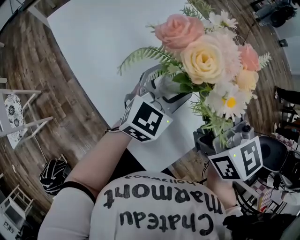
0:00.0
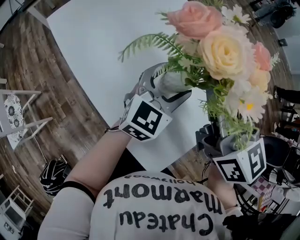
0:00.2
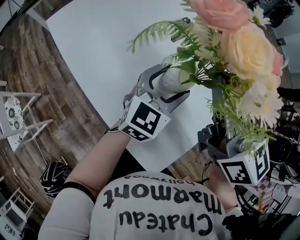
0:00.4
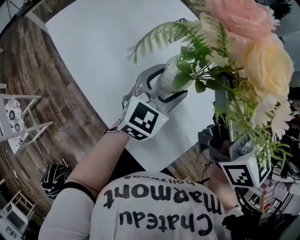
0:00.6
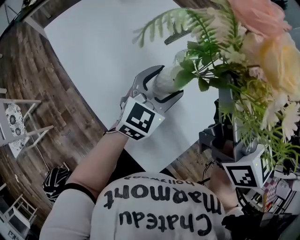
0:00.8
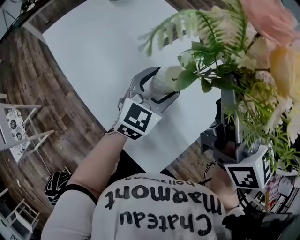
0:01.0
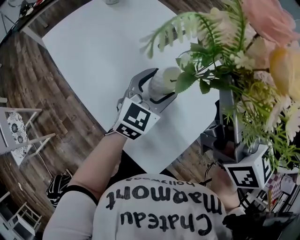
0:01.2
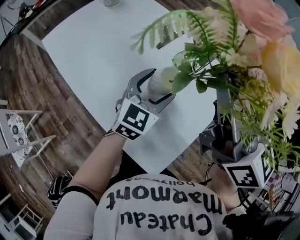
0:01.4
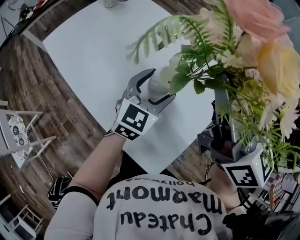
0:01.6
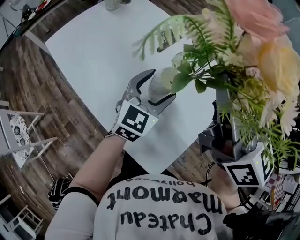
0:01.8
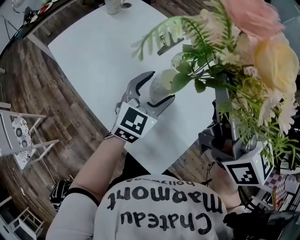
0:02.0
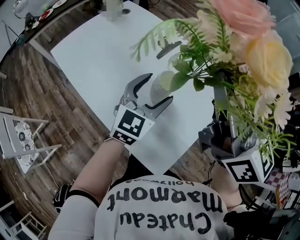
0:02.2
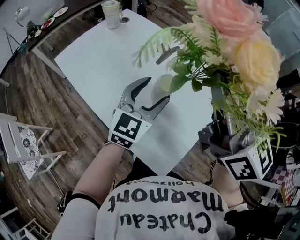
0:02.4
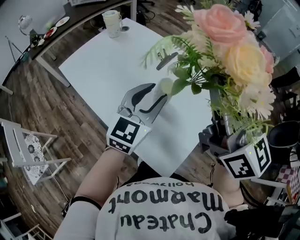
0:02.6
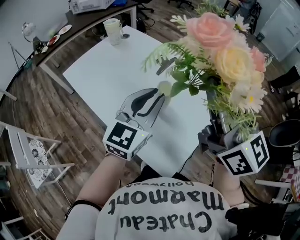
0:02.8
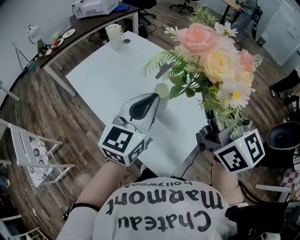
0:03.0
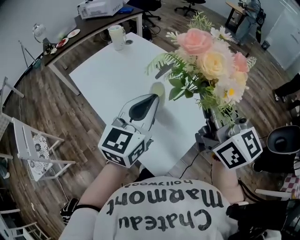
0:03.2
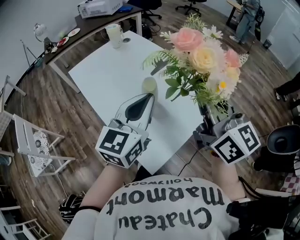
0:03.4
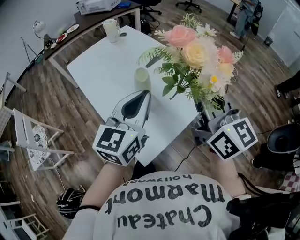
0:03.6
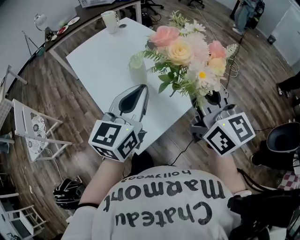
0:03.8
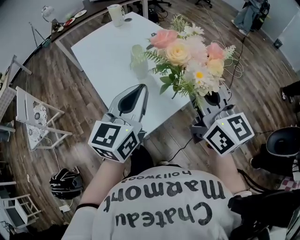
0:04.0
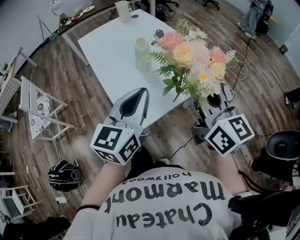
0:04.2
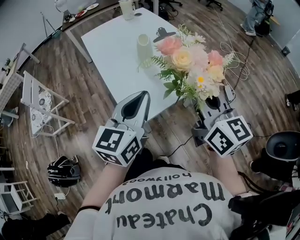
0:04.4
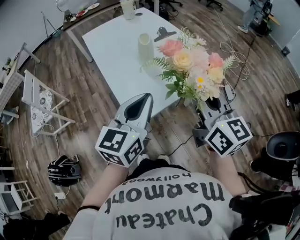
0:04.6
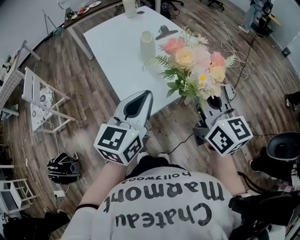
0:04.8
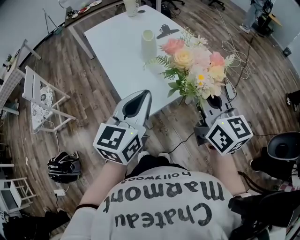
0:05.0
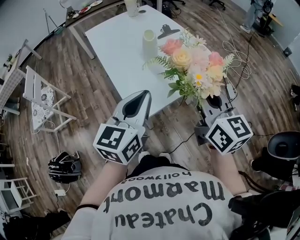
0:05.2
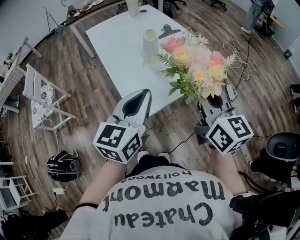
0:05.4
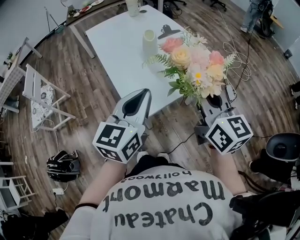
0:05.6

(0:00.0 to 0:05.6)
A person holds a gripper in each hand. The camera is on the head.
0:00.0 - 0:01.4: The right gripper moves upward, approximately 10 cm.
0:01.4 - 0:02.8: The left gripper is displaced upward and backward by some 15 cm, and closes; the right gripper heads backward and upward, covering approximately 10 cm.
0:02.8 - 0:04.2: The left gripper shifts approximately 20 cm backward and to the right, and turns by about 30 degrees. Meanwhile the right gripper moves to the right, backward and downward, some 20 cm.
0:04.2 - 0:05.6: The grippers stay close to where they were, moving slightly.

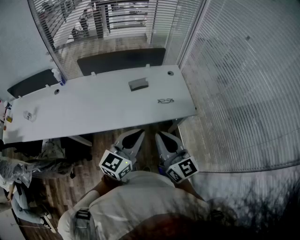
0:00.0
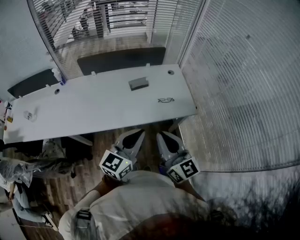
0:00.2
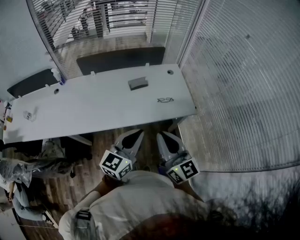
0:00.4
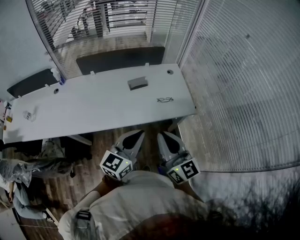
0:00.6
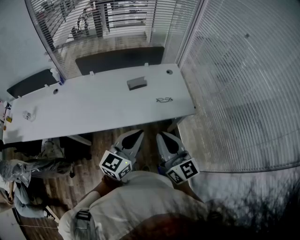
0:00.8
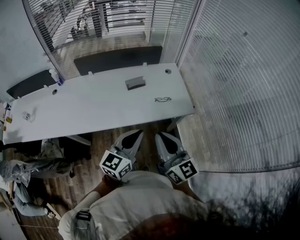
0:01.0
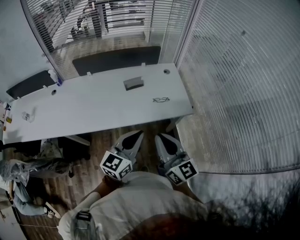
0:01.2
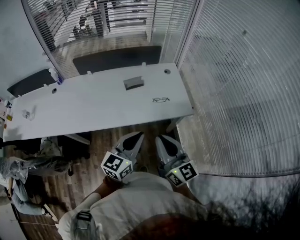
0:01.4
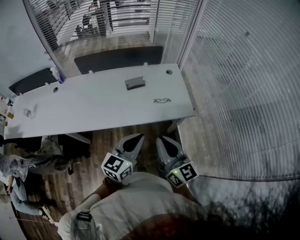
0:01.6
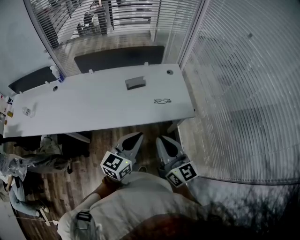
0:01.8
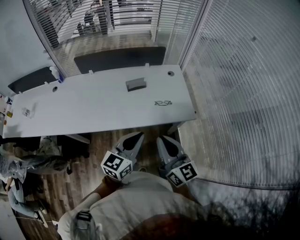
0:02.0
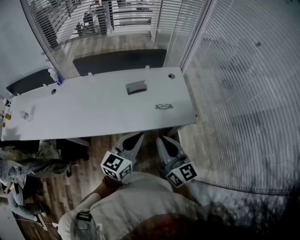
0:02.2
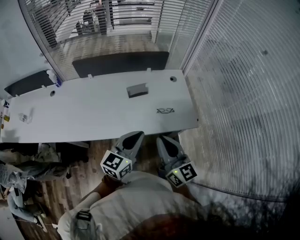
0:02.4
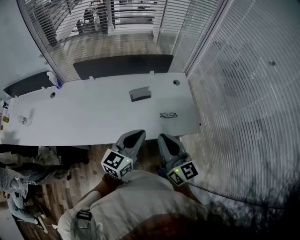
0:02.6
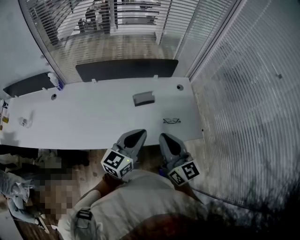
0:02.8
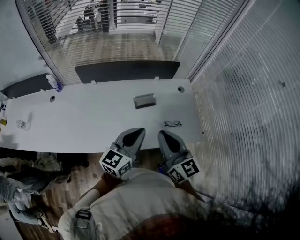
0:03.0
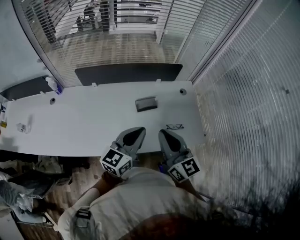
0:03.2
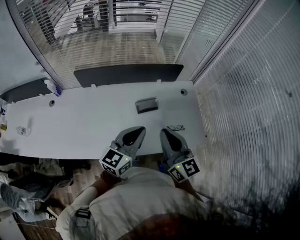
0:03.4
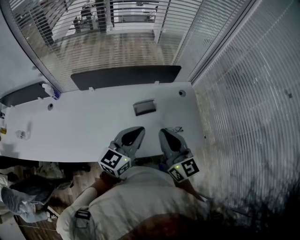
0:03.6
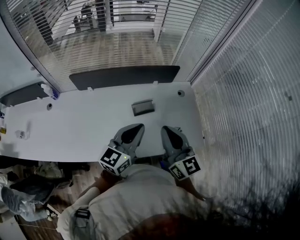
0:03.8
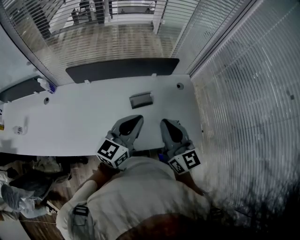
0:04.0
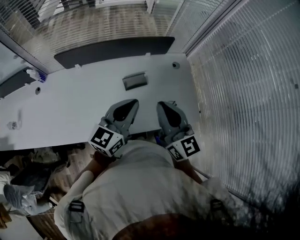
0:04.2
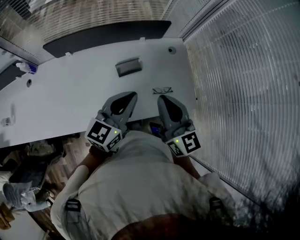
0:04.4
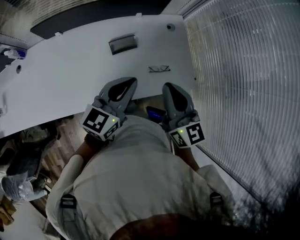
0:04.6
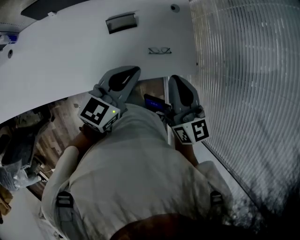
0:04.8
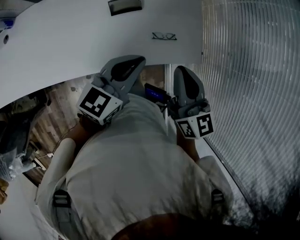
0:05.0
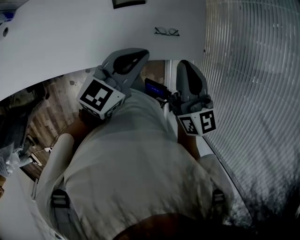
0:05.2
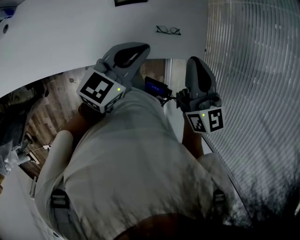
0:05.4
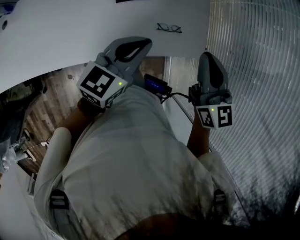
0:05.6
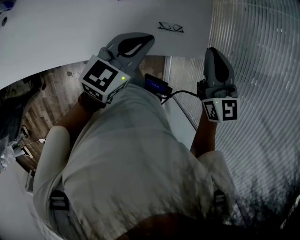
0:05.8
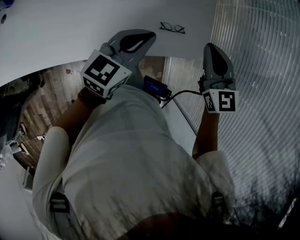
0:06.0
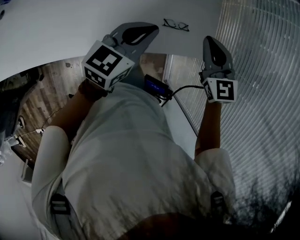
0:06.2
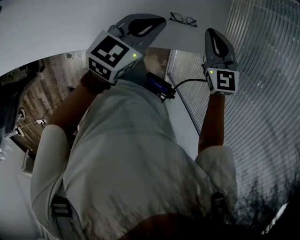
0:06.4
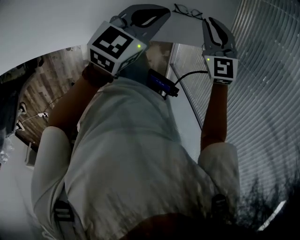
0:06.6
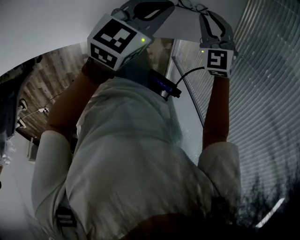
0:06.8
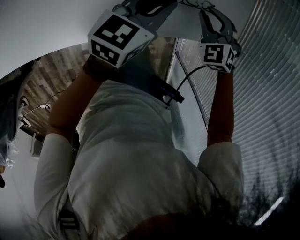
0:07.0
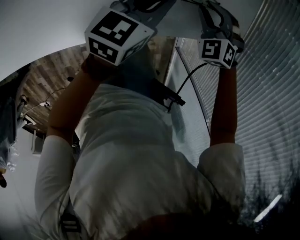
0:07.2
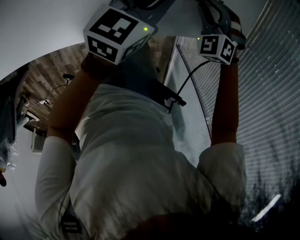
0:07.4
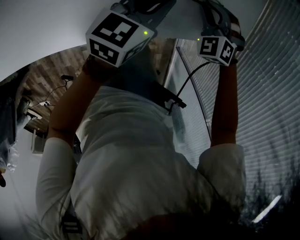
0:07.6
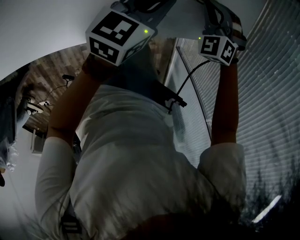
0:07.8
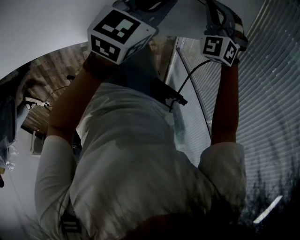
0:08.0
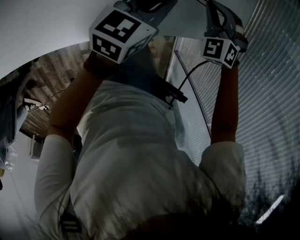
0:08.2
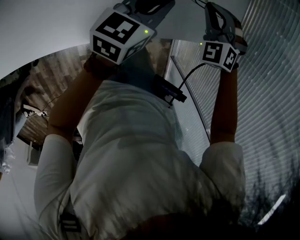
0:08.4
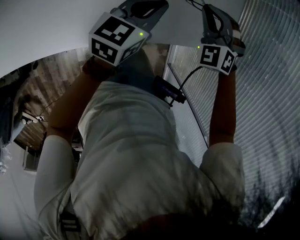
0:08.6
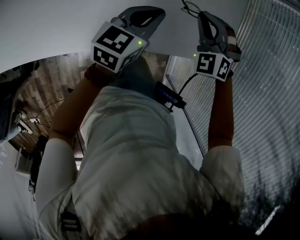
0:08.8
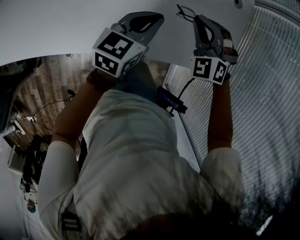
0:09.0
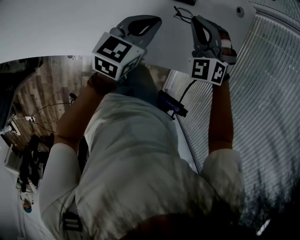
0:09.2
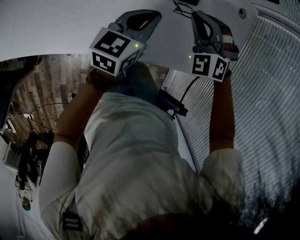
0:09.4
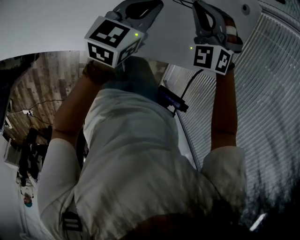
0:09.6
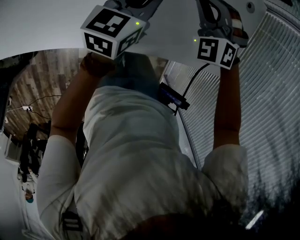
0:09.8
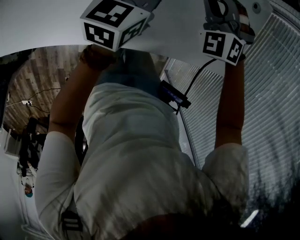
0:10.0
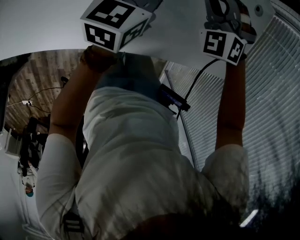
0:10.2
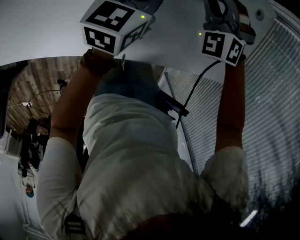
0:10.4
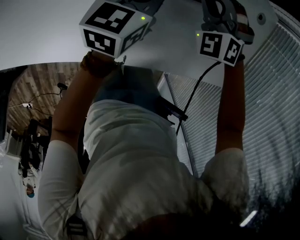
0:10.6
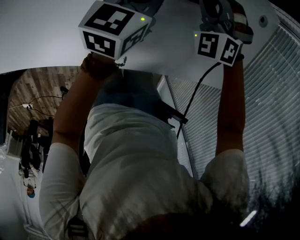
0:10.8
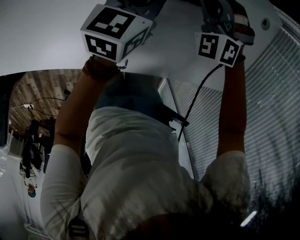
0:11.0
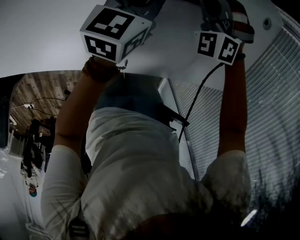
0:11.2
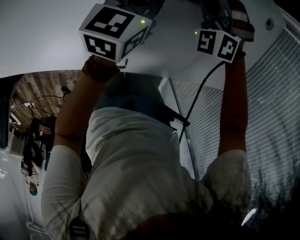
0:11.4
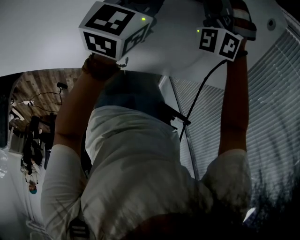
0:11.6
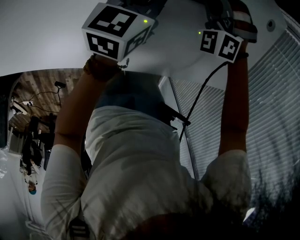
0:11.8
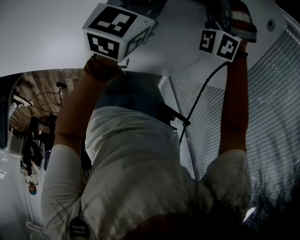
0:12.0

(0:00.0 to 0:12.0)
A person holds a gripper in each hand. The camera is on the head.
0:00.0 - 0:01.6: The grippers both shift to the right by some 5 cm.
0:01.6 - 0:03.0: Both grippers move forward and to the left, roughly 25 cm.
0:03.0 - 0:04.4: The left gripper heads forward, covering about 10 cm, while the right gripper heads forward and to the right, covering roughly 10 cm.
0:04.4 - 0:06.0: The right gripper heads to the right, downward and forward, covering approximately 15 cm, and rotates about 30 degrees. The left gripper travels downward by some 10 cm.
0:06.0 - 0:07.6: The left gripper heads downward, covering roughly 25 cm, while the right gripper moves downward, roughly 35 cm, and tilts its fingers some 30 degrees downward.
0:07.6 - 0:09.0: The left gripper travels backward, to the left and upward by roughly 10 cm, while the right gripper goes roughly 15 cm upward and to the left, and changes its angle by approximately 20 degrees.
0:09.0 - 0:10.4: The grippers both shift forward and to the left by about 10 cm.
0:10.4 - 0:12.0: The right gripper travels downward by roughly 10 cm.

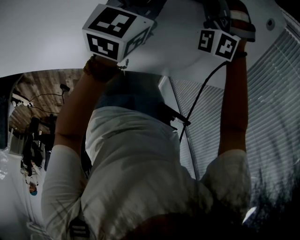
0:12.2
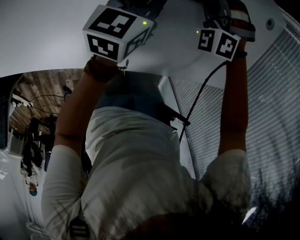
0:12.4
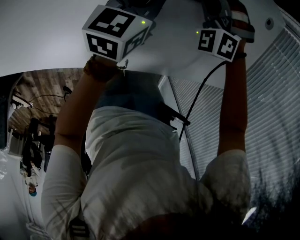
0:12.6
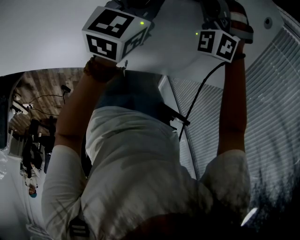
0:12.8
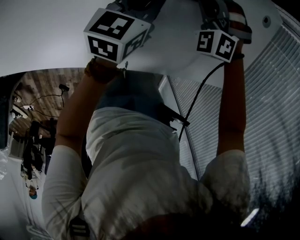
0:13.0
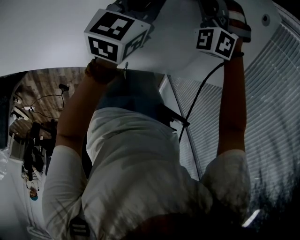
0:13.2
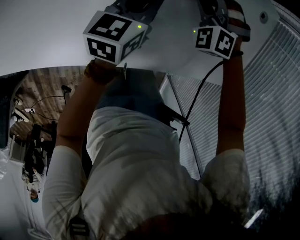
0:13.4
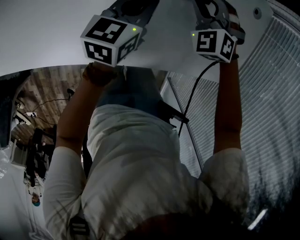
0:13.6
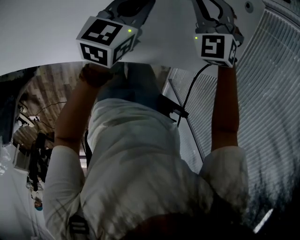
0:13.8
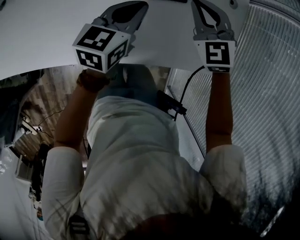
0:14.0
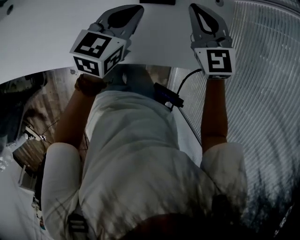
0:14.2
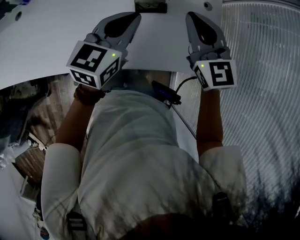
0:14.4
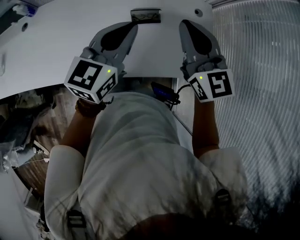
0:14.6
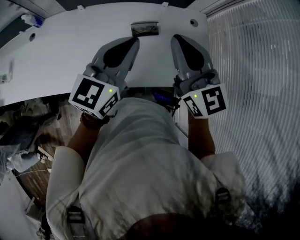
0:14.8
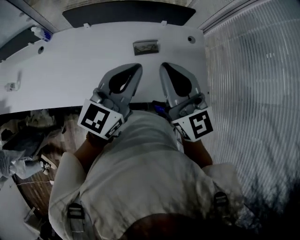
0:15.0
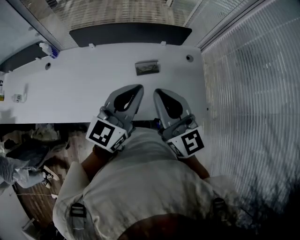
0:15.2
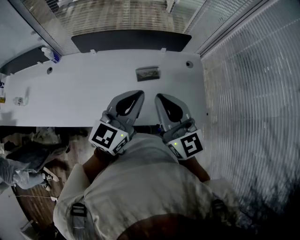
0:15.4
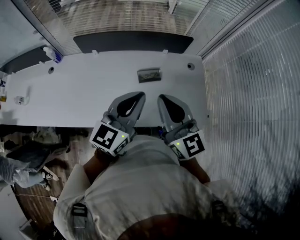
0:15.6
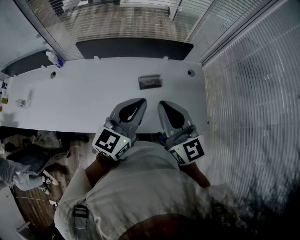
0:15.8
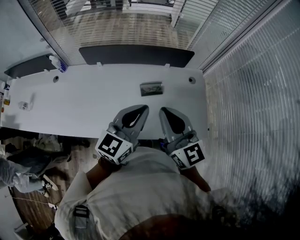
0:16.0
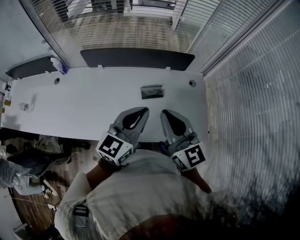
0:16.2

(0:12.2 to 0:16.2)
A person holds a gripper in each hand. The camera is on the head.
0:12.2 - 0:13.6: The right gripper shifts by some 5 cm.
0:13.6 - 0:14.8: Both grippers travel together upward and backward, approximately 40 cm. The left gripper rotates about 30 degrees. The right gripper angles its fingers upward, by some 50 degrees, and closes.

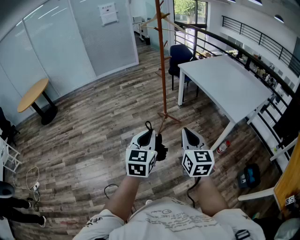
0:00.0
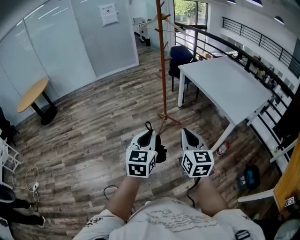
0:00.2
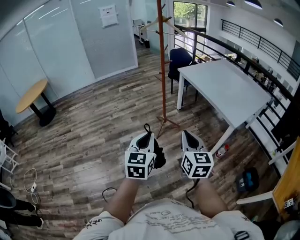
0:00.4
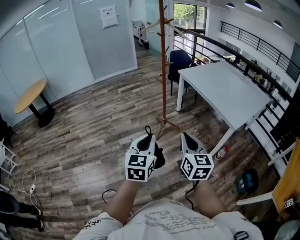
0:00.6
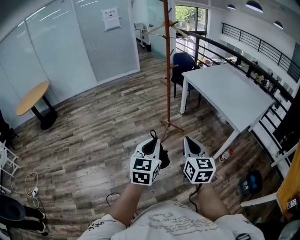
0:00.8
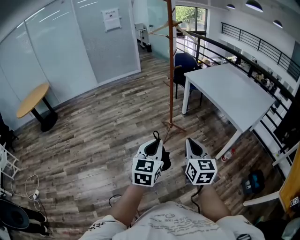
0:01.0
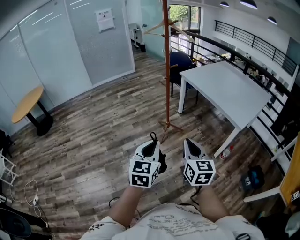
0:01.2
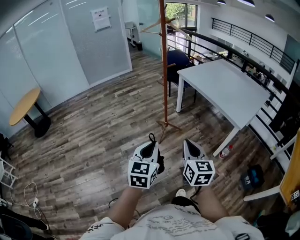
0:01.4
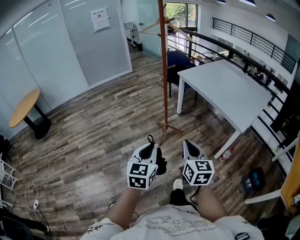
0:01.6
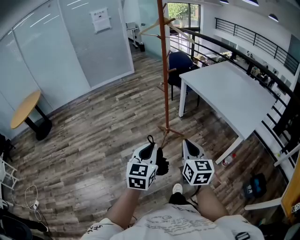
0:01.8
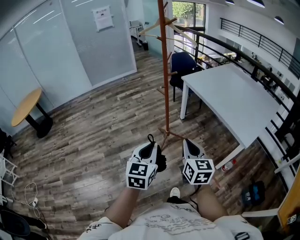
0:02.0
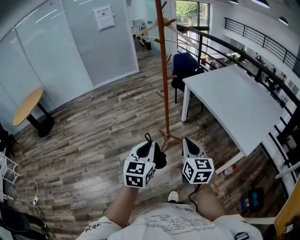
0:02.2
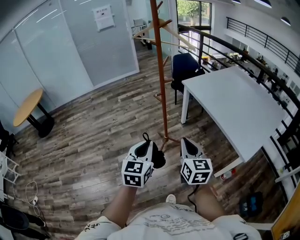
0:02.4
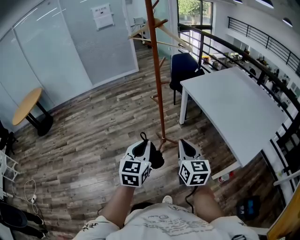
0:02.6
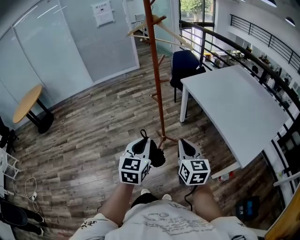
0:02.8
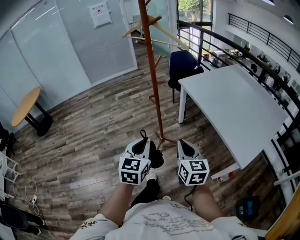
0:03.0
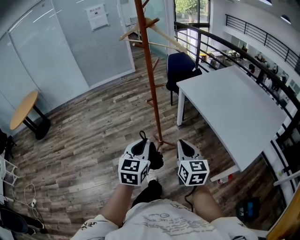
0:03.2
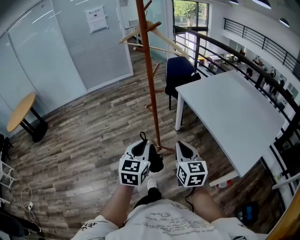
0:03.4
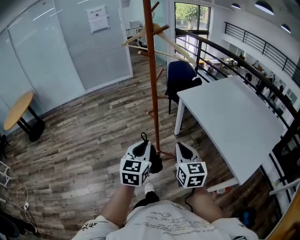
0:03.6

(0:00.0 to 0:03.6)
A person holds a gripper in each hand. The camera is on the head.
0:00.0 - 0:01.8: The grippers both shift forward and to the left by some 15 cm.
0:01.8 - 0:03.6: Both grippers travel together forward, about 30 cm.
